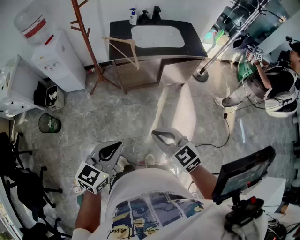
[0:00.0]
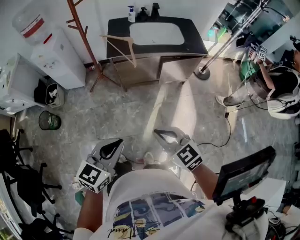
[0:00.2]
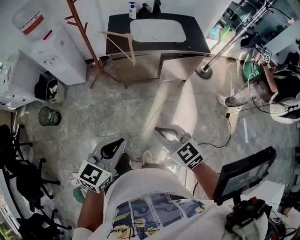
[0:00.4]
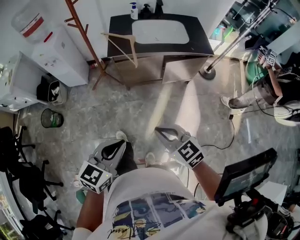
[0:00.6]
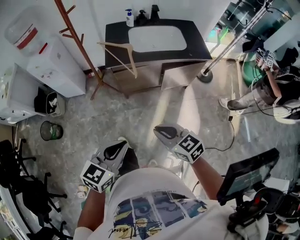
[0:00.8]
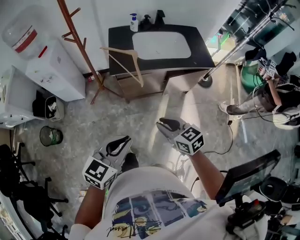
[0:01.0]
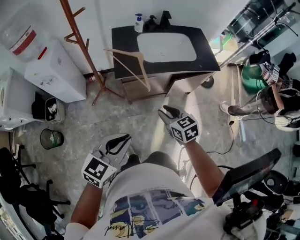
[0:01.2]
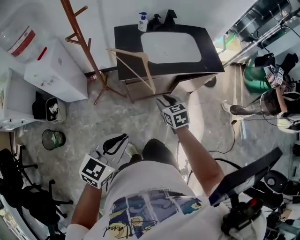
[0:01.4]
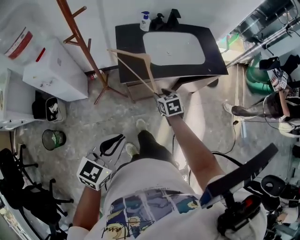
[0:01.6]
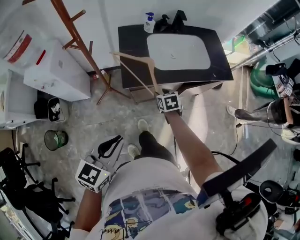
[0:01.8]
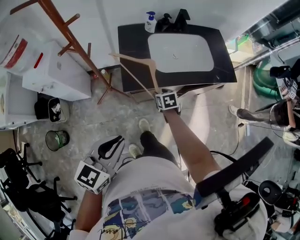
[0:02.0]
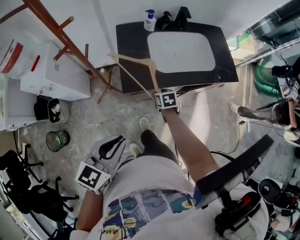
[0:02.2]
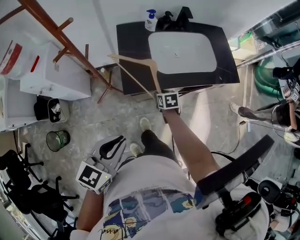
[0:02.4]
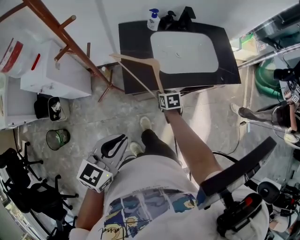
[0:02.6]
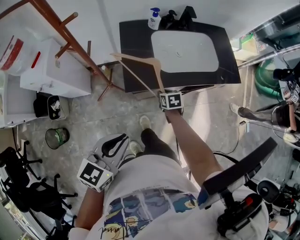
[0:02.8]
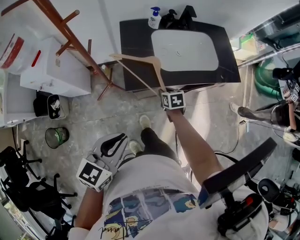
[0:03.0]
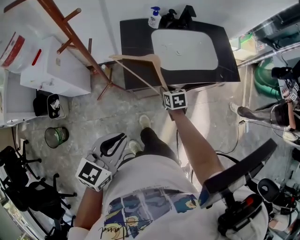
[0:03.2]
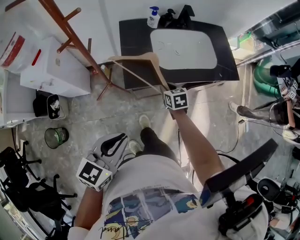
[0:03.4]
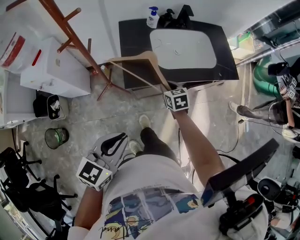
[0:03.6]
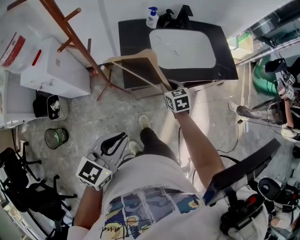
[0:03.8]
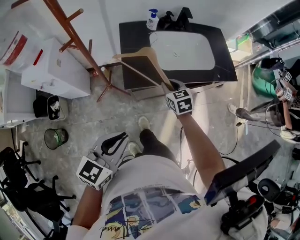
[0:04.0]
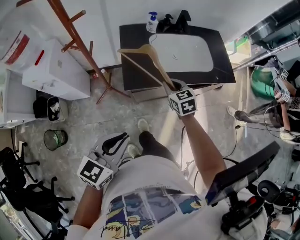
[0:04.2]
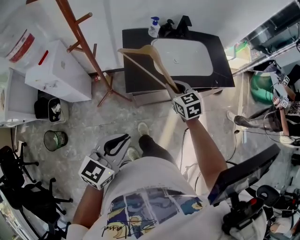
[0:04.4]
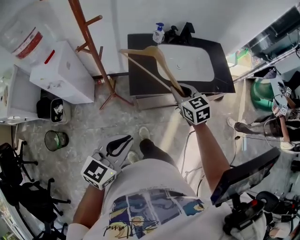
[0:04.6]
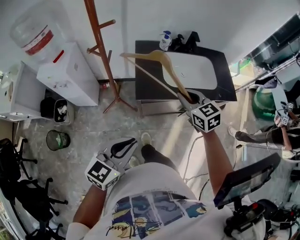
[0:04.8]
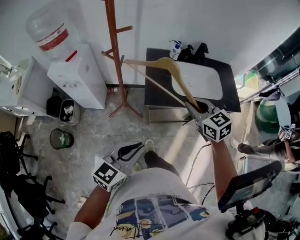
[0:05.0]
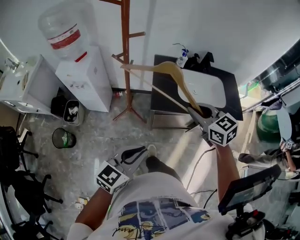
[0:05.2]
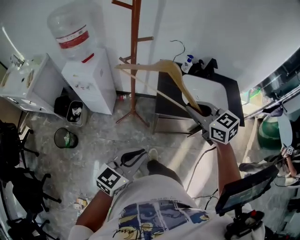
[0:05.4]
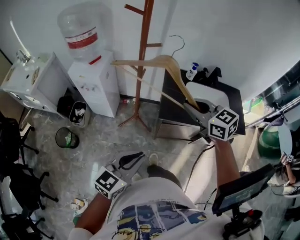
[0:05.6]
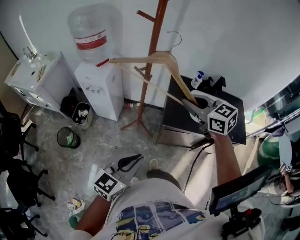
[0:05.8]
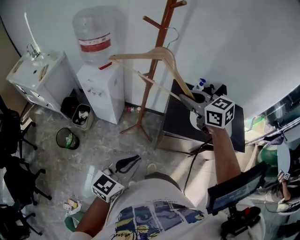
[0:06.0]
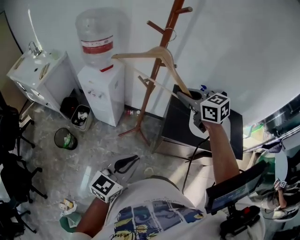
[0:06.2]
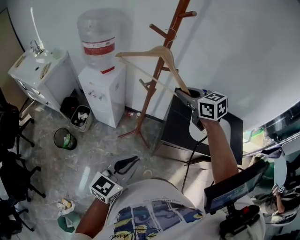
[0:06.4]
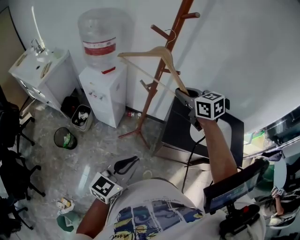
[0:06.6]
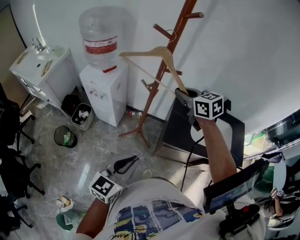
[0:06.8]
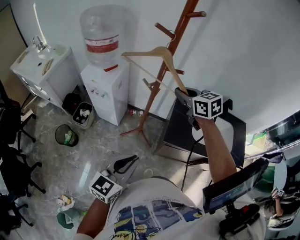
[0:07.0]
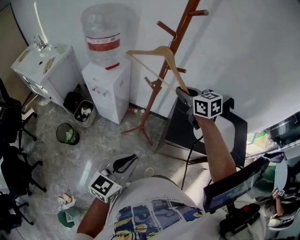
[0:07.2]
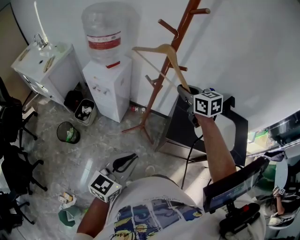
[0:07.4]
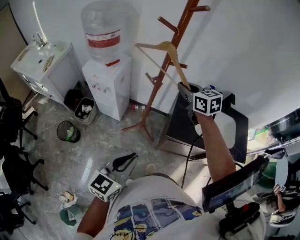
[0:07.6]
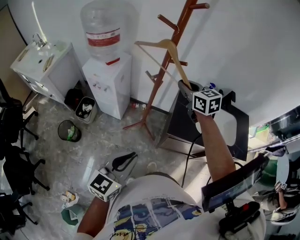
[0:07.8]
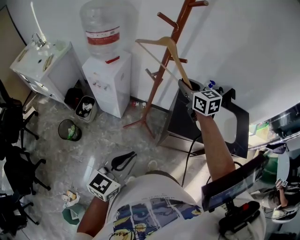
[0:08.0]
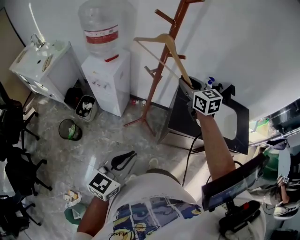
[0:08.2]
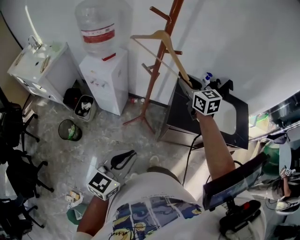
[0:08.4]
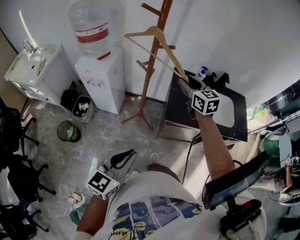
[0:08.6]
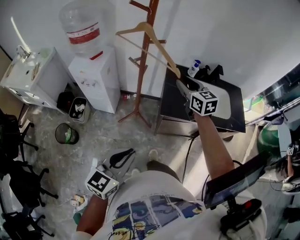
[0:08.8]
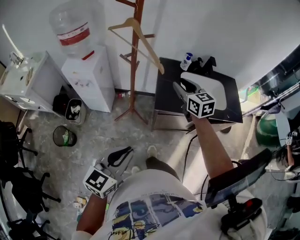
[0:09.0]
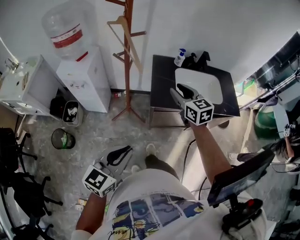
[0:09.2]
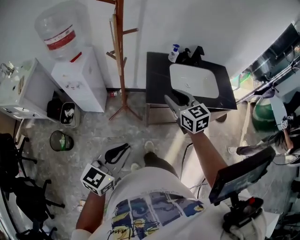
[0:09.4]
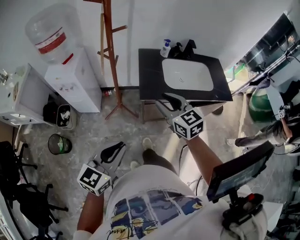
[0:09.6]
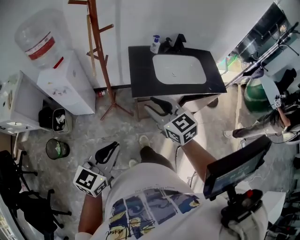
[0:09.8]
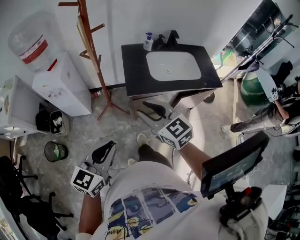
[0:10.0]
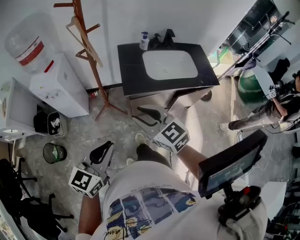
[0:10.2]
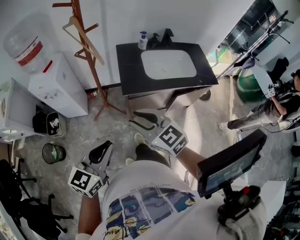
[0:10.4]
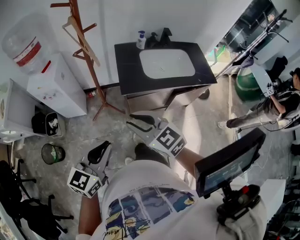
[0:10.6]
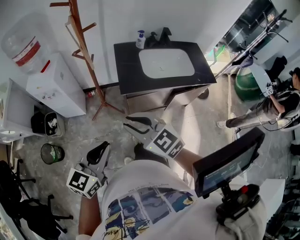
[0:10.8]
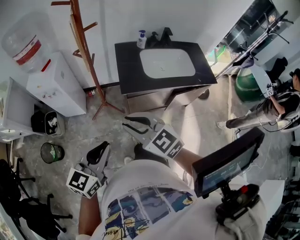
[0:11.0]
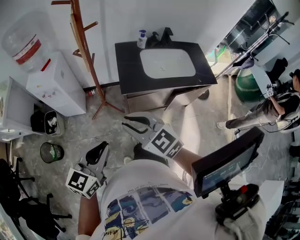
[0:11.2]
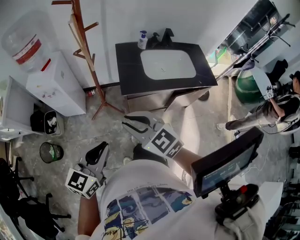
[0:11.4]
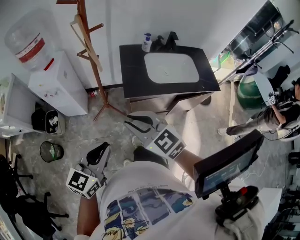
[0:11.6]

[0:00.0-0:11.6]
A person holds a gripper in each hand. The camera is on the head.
0:00.0 to 0:01.4: The left gripper moves forward, about 25 cm. Meanwhile the right gripper moves forward, some 35 cm, rotates roughly 30 degrees, and opens up.
0:01.4 to 0:02.8: The right gripper is displaced forward and downward by some 20 cm, and changes its angle by some 20 degrees. The left gripper is displaced forward by approximately 15 cm.
0:02.8 to 0:04.4: The right gripper goes about 20 cm upward, and swivels some 30 degrees.
0:04.4 to 0:05.8: The left gripper ends up some 10 cm from where it was. The right gripper shifts roughly 25 cm upward, and rotates about 40 degrees.
0:05.8 to 0:07.2: The right gripper goes roughly 15 cm forward. The left gripper travels forward by roughly 5 cm.
0:07.2 to 0:08.8: The left gripper is displaced backward by about 10 cm, while the right gripper is displaced to the right and backward by roughly 10 cm, changes its angle by about 20 degrees, and opens.
0:08.8 to 0:10.2: The right gripper goes roughly 25 cm backward.
0:10.2 to 0:11.6: There are only small adjustments of the grippers.

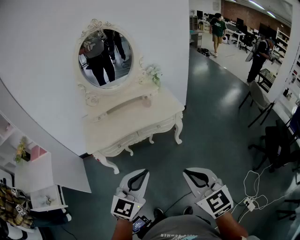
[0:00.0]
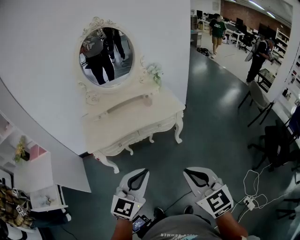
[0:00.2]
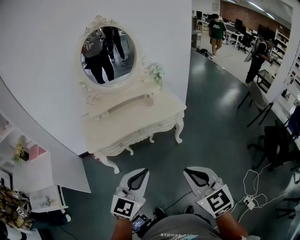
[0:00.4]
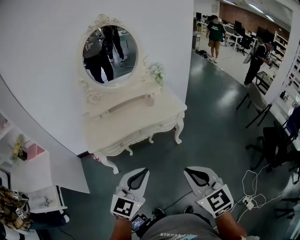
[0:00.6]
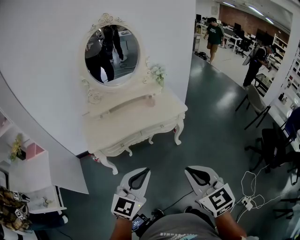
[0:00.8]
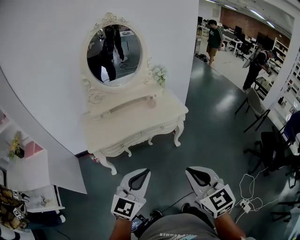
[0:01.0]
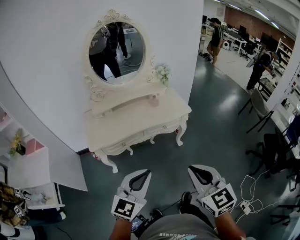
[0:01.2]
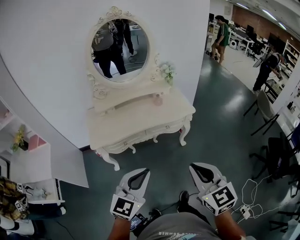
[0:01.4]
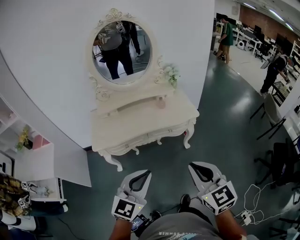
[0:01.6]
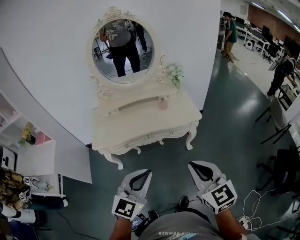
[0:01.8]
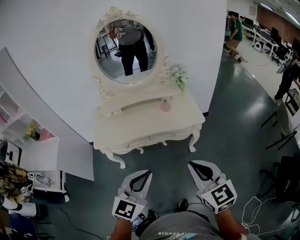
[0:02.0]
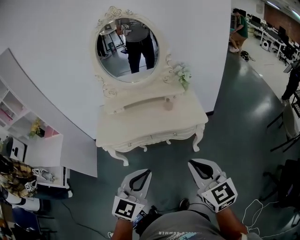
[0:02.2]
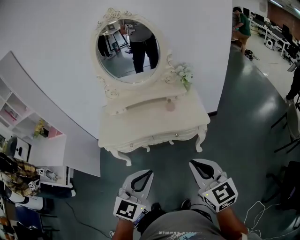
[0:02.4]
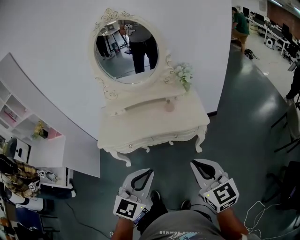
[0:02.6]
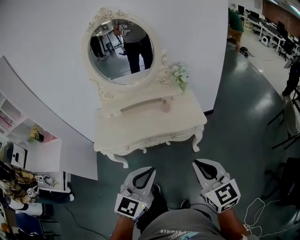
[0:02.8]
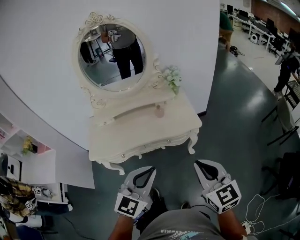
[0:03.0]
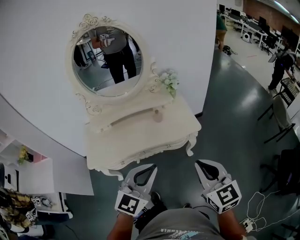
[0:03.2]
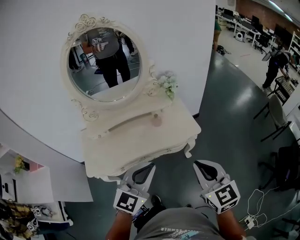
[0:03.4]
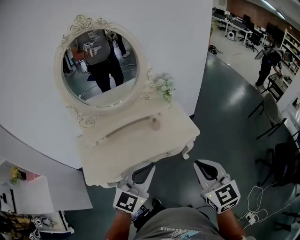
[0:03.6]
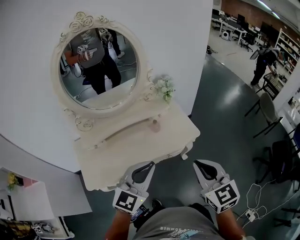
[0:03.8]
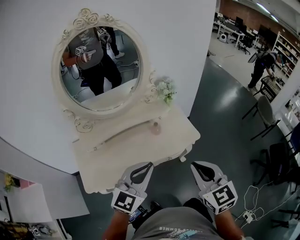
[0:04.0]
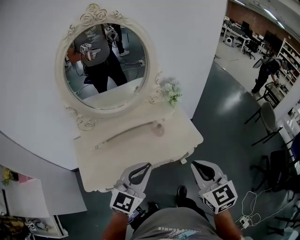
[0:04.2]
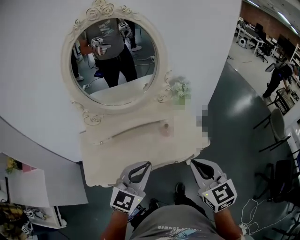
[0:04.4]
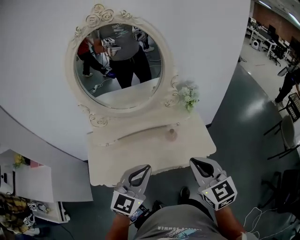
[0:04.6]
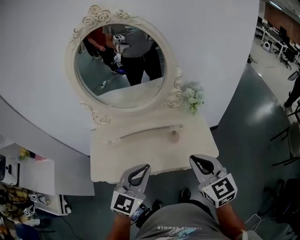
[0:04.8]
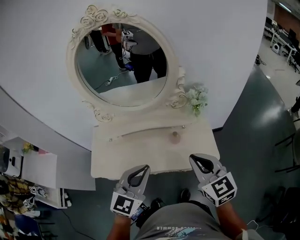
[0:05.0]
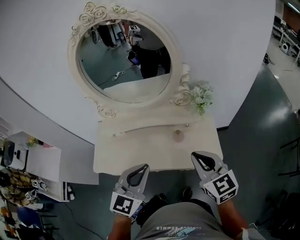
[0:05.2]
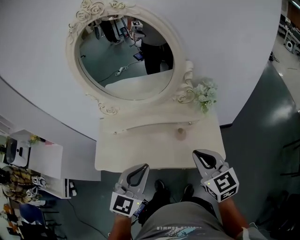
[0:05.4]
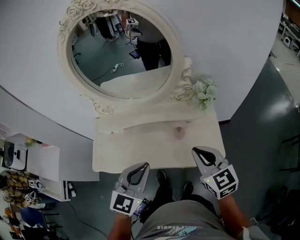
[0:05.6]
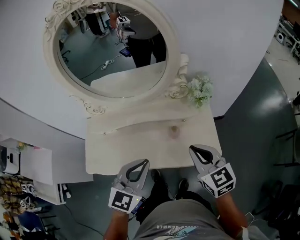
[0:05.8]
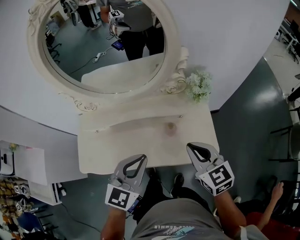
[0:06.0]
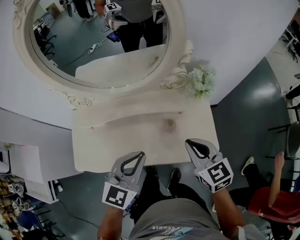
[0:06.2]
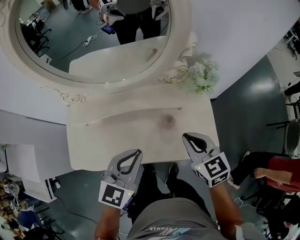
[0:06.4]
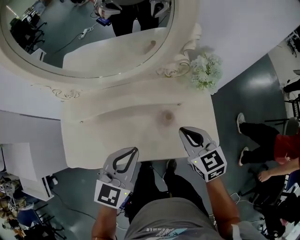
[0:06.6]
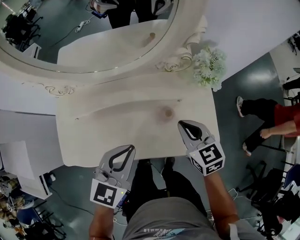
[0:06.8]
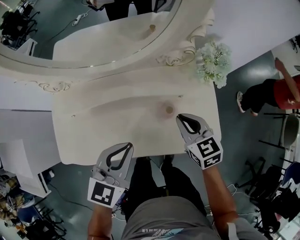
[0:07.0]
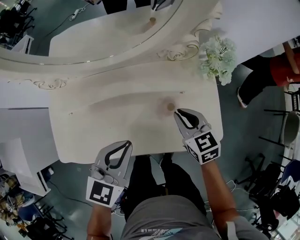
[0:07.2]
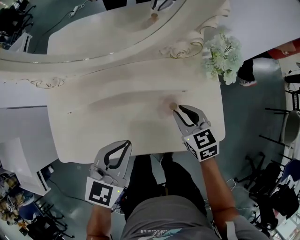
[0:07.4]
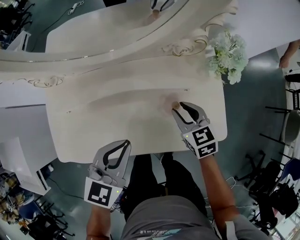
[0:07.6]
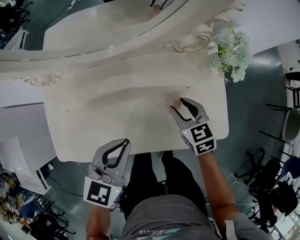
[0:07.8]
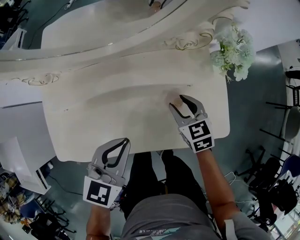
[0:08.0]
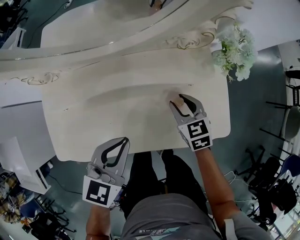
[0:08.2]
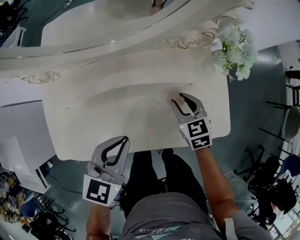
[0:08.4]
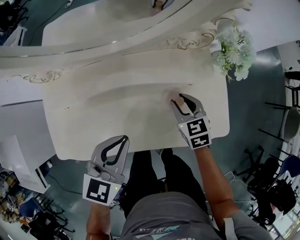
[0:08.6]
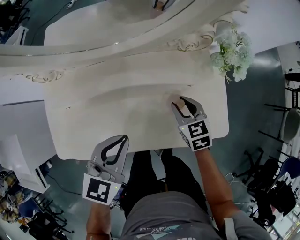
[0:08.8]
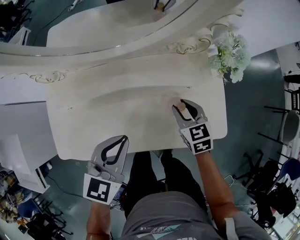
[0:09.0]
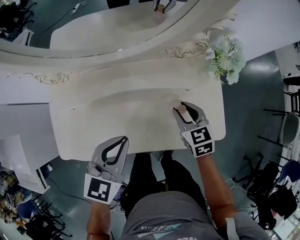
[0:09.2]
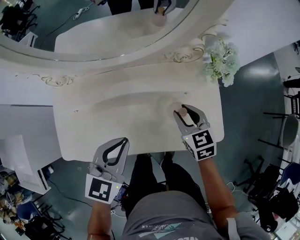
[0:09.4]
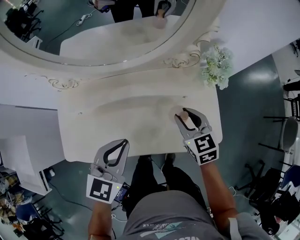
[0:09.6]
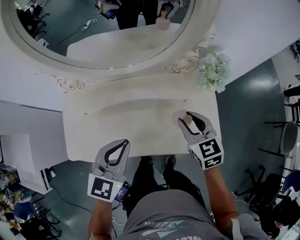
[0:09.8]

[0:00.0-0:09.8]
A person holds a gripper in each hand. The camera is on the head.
0:00.0 to 0:01.4: The right gripper heads forward and to the left, covering about 10 cm, while the left gripper is displaced to the left by approximately 10 cm.
0:01.4 to 0:02.8: The right gripper shifts some 25 cm forward and to the right. Meanwhile the left gripper moves to the right and forward, approximately 20 cm.
0:02.8 to 0:04.2: The right gripper travels to the left and forward by approximately 25 cm. Meanwhile the left gripper heads forward and to the left, covering roughly 30 cm.
0:04.2 to 0:05.6: The left gripper shifts by roughly 10 cm, and turns by about 30 degrees. The right gripper moves about 25 cm, and changes its angle by roughly 30 degrees.
0:05.6 to 0:07.0: The grippers both shift downward and forward by about 20 cm.
0:07.0 to 0:08.4: The left gripper heads downward, covering about 5 cm, while the right gripper is displaced downward by some 10 cm, and opens up.
0:08.4 to 0:09.8: The left gripper is displaced upward by roughly 10 cm. Meanwhile the right gripper moves upward, about 15 cm.

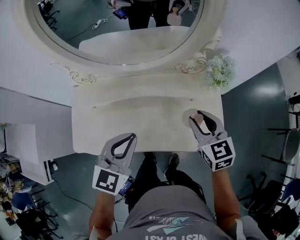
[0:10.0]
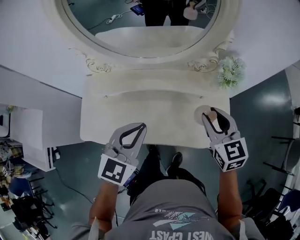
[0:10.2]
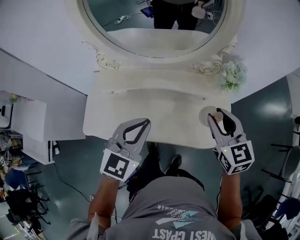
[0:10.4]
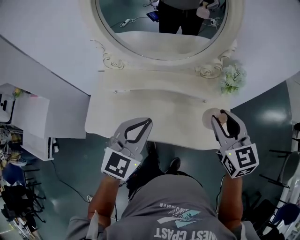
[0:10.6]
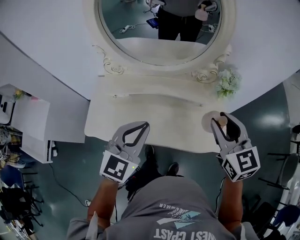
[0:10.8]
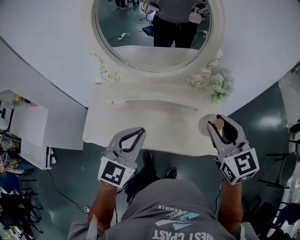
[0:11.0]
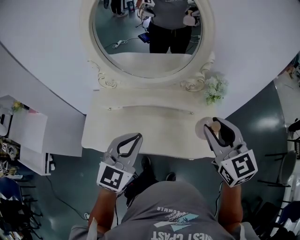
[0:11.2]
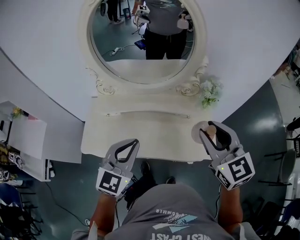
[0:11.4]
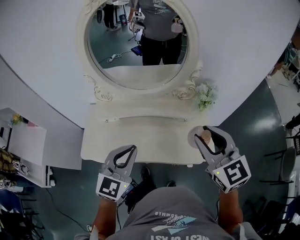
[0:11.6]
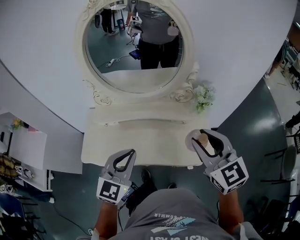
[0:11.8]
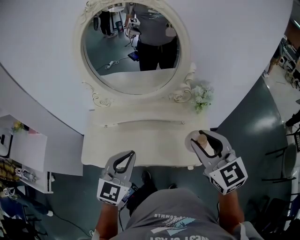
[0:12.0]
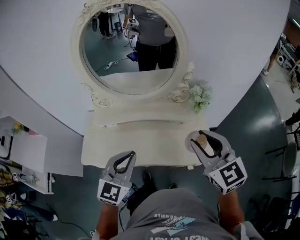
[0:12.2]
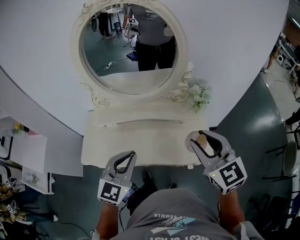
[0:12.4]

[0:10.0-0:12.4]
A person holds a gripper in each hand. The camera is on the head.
0:10.0 to 0:11.2: The left gripper shifts about 15 cm upward and backward. The right gripper is displaced upward and backward by some 20 cm.
0:11.2 to 0:12.4: The right gripper goes about 5 cm backward.
